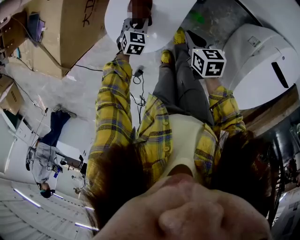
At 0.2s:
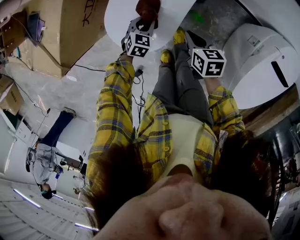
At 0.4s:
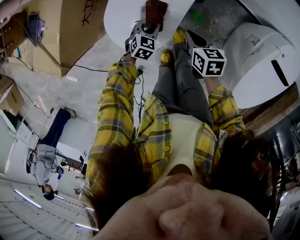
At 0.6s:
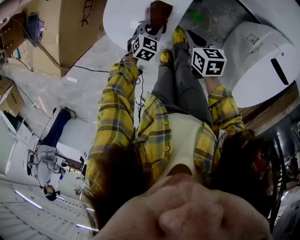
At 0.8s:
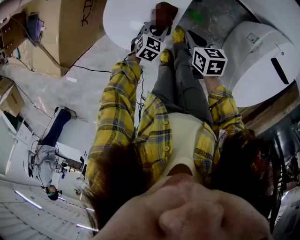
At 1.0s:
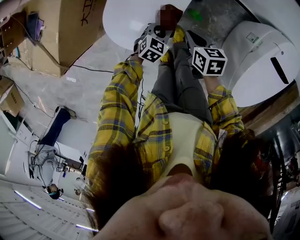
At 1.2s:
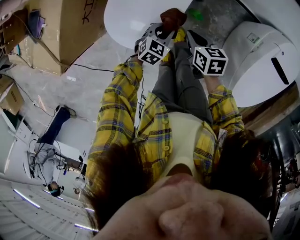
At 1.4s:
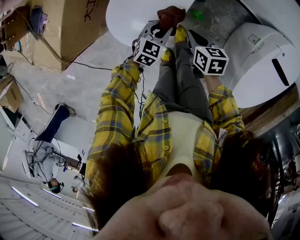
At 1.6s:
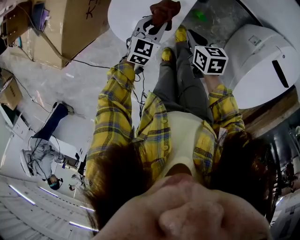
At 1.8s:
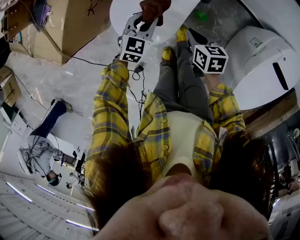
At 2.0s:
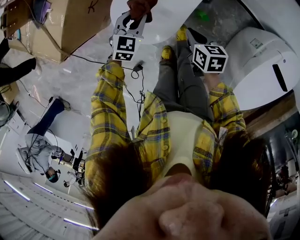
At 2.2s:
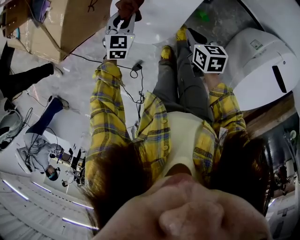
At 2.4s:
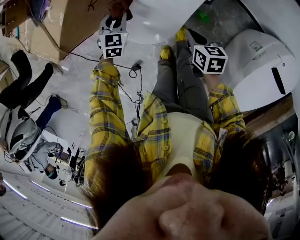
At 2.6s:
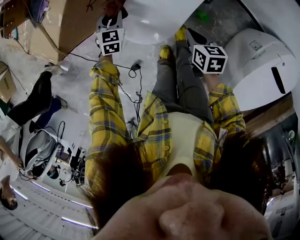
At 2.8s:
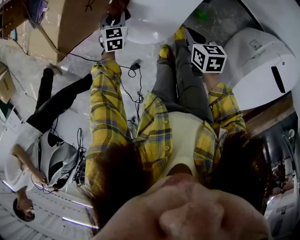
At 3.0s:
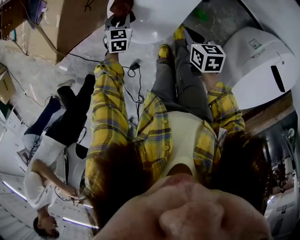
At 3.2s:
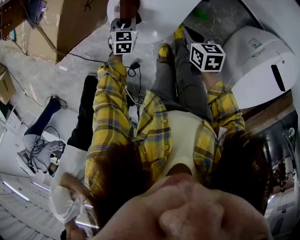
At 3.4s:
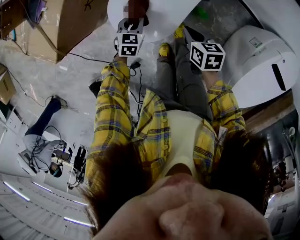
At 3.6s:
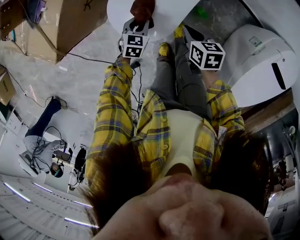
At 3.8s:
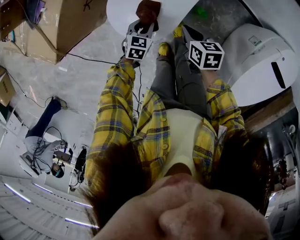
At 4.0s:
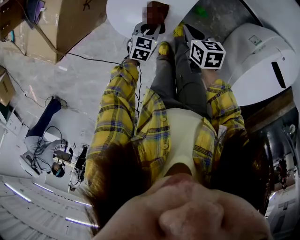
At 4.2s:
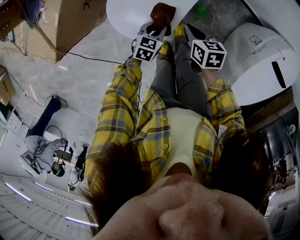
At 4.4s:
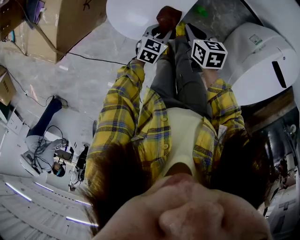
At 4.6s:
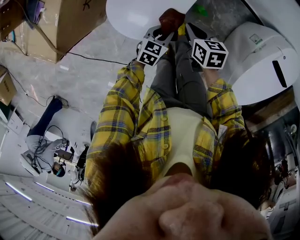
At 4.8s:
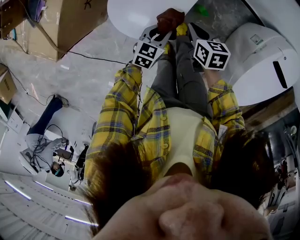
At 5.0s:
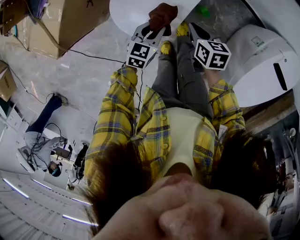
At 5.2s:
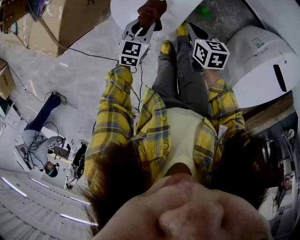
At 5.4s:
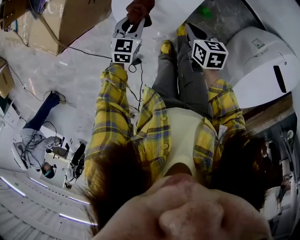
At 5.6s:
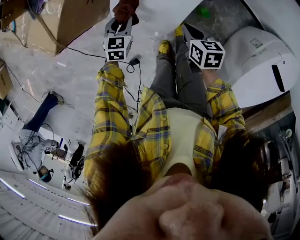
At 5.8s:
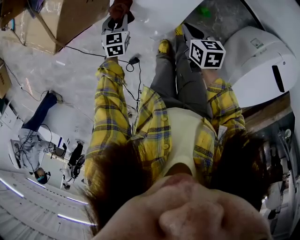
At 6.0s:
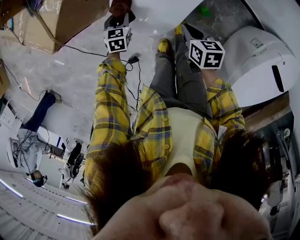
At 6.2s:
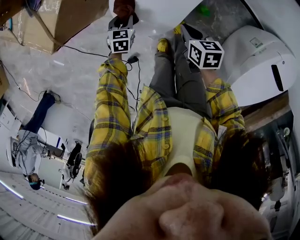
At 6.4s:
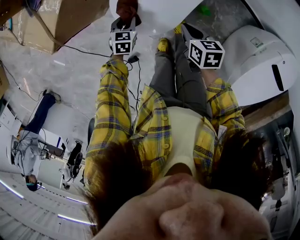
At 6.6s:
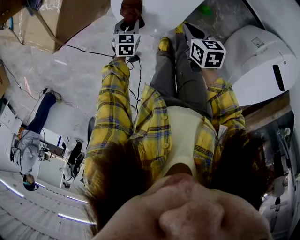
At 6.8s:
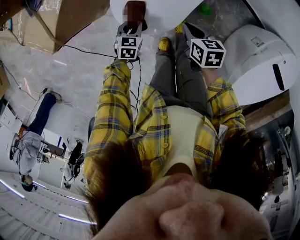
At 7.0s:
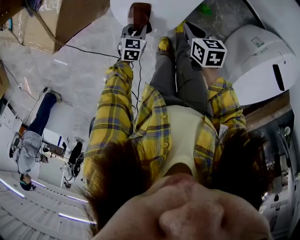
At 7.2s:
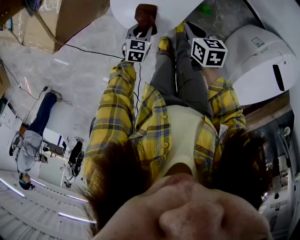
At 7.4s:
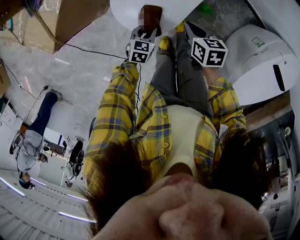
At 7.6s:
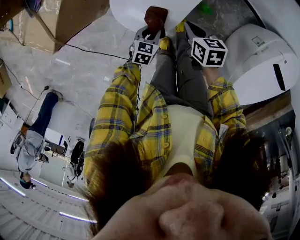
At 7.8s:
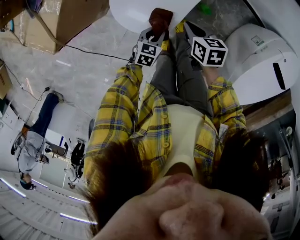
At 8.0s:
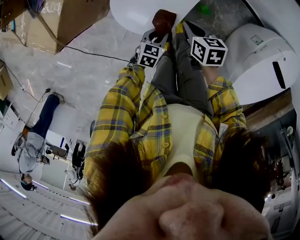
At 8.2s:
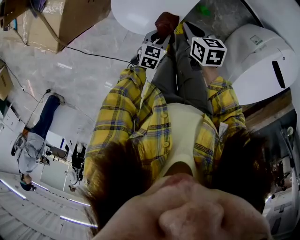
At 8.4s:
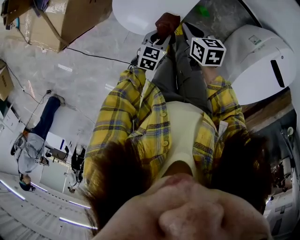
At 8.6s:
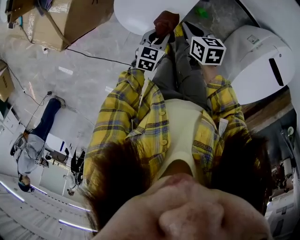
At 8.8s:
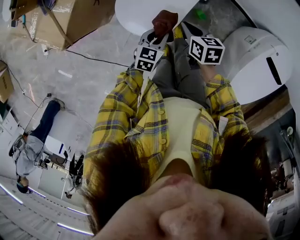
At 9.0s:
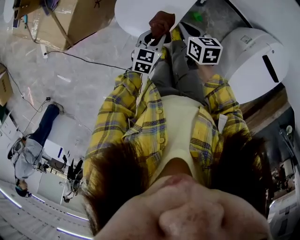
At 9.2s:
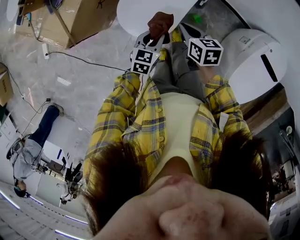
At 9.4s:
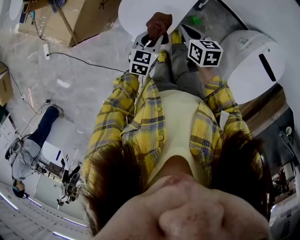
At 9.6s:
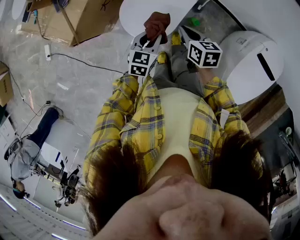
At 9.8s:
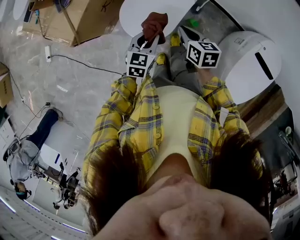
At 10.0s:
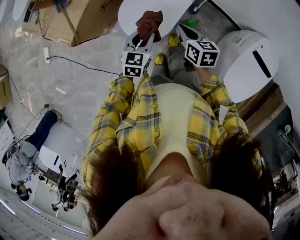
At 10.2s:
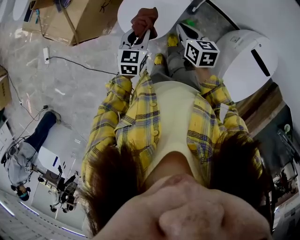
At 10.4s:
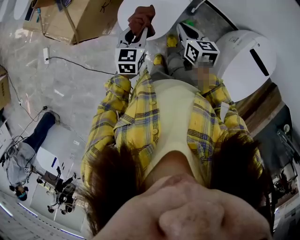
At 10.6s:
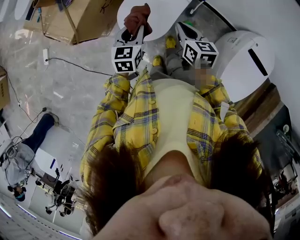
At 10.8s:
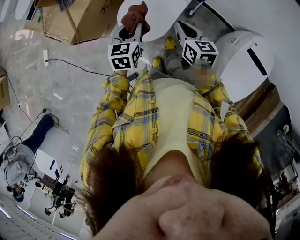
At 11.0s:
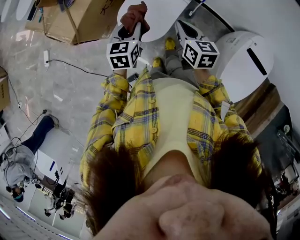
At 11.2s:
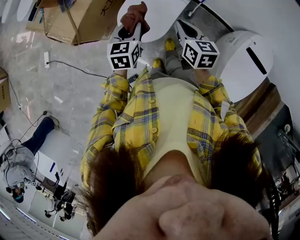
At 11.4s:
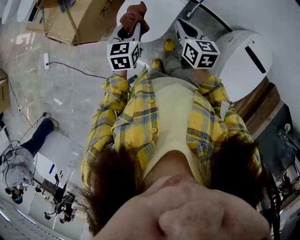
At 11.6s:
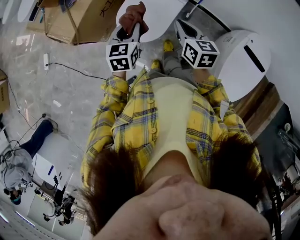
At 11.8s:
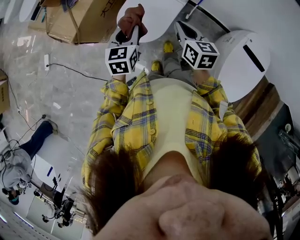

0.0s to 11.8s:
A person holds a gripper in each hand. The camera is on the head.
0.0s to 1.4s: The left gripper is displaced to the right, upward and backward by roughly 15 cm.
1.4s to 3.0s: The left gripper shifts by some 20 cm, and swivels roughly 30 degrees.
3.0s to 4.4s: The left gripper ends up roughly 20 cm from where it was, and turns by approximately 30 degrees.
4.4s to 6.0s: The left gripper shifts by roughly 20 cm, and swivels approximately 30 degrees.
6.0s to 7.4s: The left gripper heads backward and to the right, covering roughly 15 cm.
7.4s to 8.8s: The right gripper shifts roughly 5 cm upward; the left gripper goes approximately 15 cm upward and to the right.
8.8s to 10.4s: Both grippers travel together upward, about 15 cm.
10.4s to 11.8s: Both grippers travel together upward, approximately 5 cm.

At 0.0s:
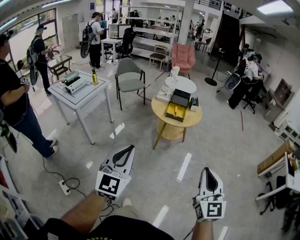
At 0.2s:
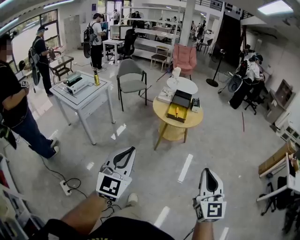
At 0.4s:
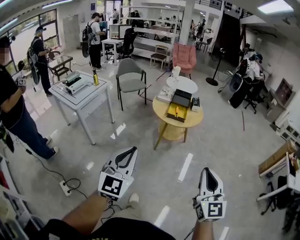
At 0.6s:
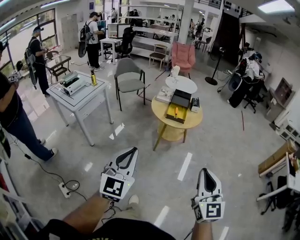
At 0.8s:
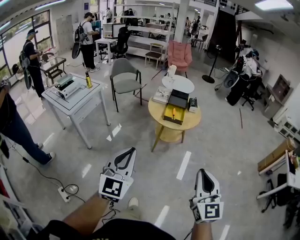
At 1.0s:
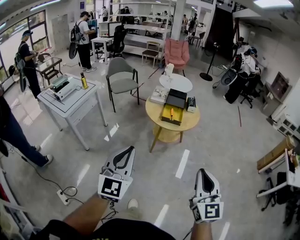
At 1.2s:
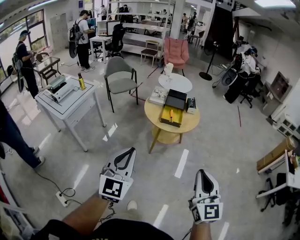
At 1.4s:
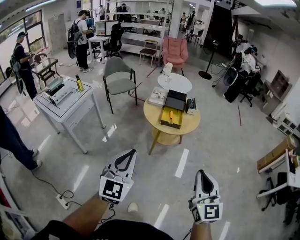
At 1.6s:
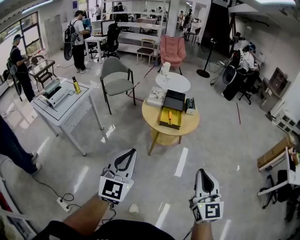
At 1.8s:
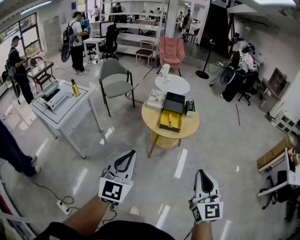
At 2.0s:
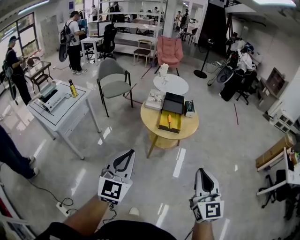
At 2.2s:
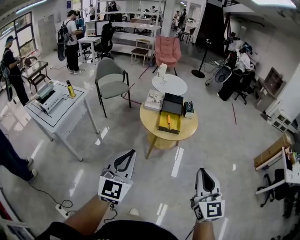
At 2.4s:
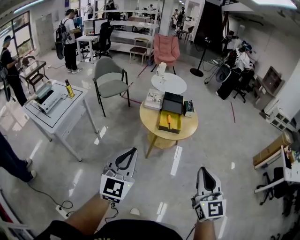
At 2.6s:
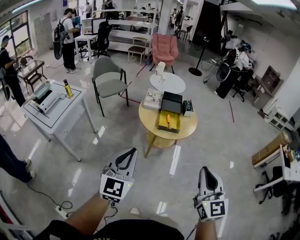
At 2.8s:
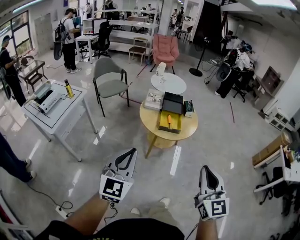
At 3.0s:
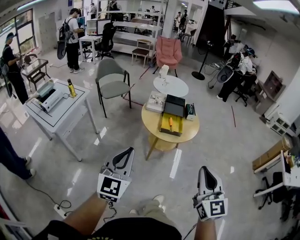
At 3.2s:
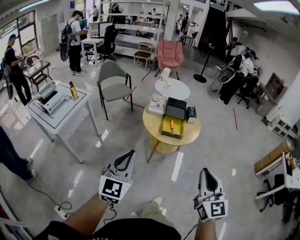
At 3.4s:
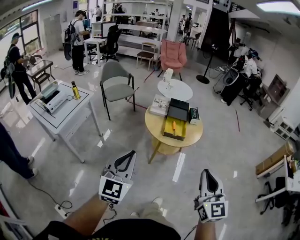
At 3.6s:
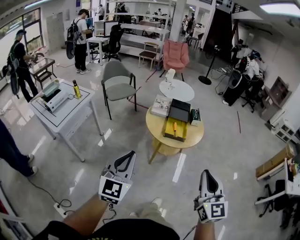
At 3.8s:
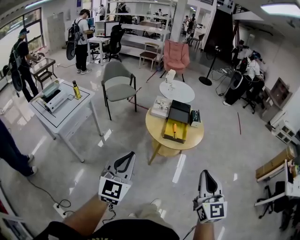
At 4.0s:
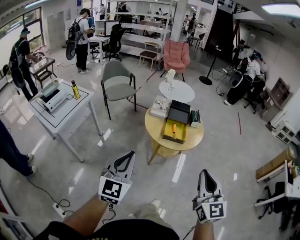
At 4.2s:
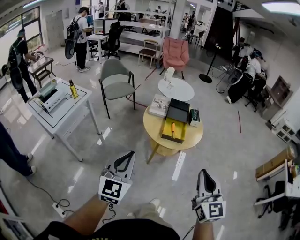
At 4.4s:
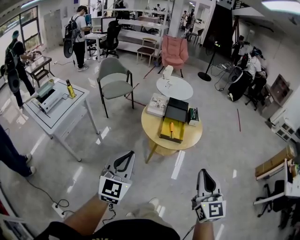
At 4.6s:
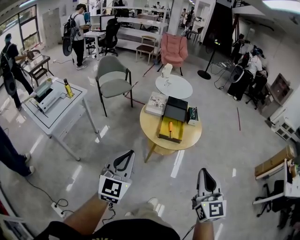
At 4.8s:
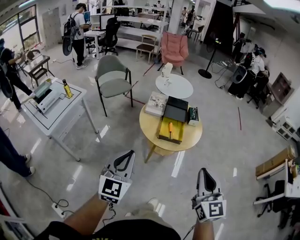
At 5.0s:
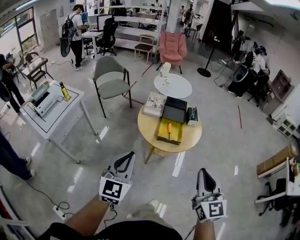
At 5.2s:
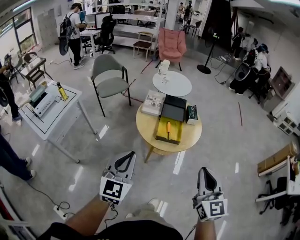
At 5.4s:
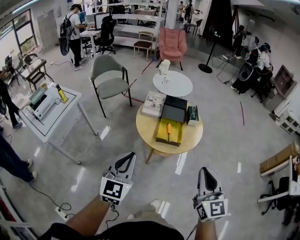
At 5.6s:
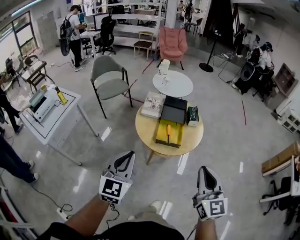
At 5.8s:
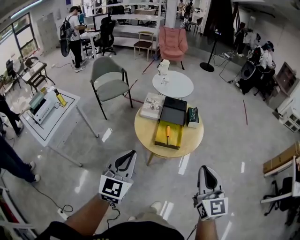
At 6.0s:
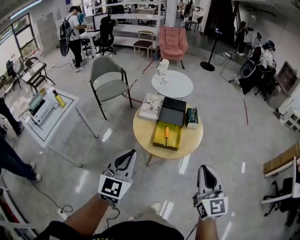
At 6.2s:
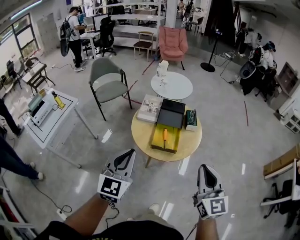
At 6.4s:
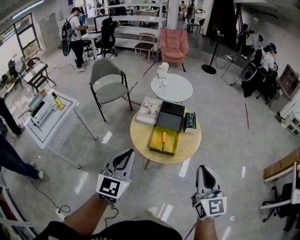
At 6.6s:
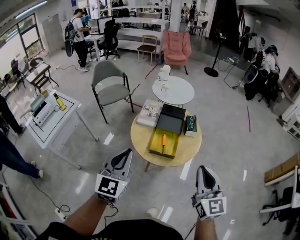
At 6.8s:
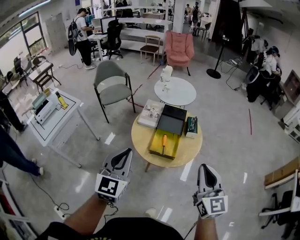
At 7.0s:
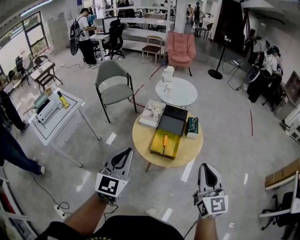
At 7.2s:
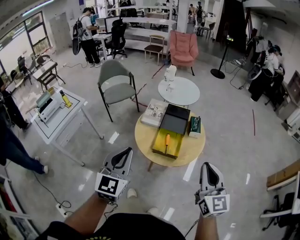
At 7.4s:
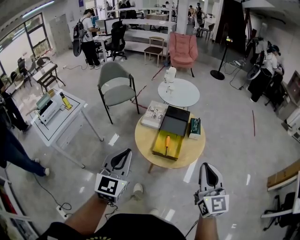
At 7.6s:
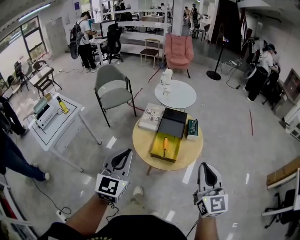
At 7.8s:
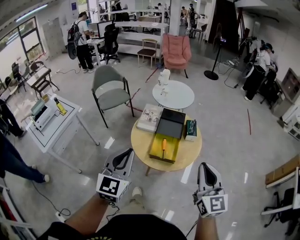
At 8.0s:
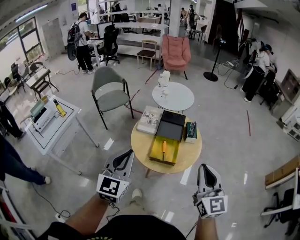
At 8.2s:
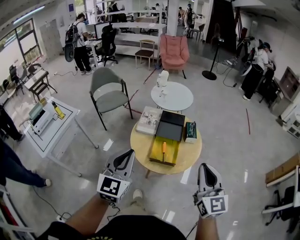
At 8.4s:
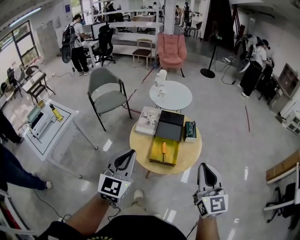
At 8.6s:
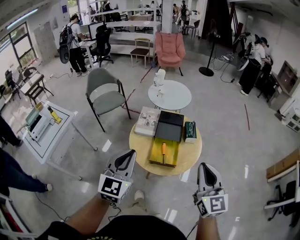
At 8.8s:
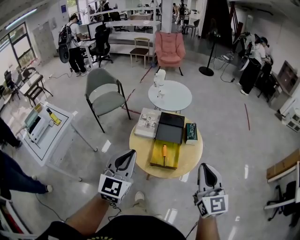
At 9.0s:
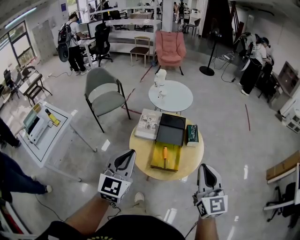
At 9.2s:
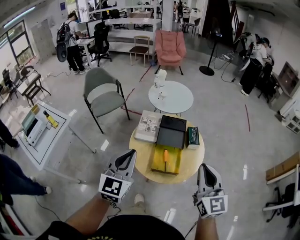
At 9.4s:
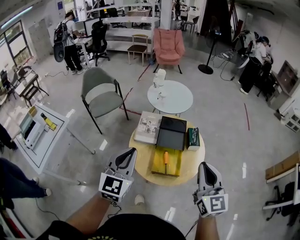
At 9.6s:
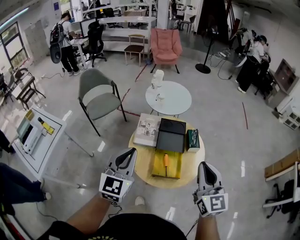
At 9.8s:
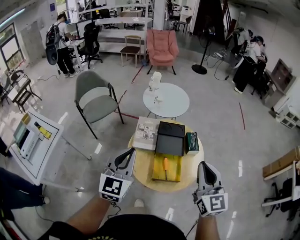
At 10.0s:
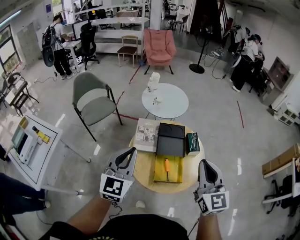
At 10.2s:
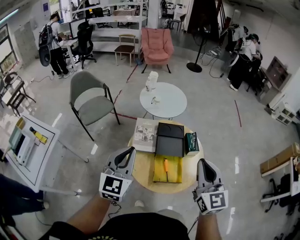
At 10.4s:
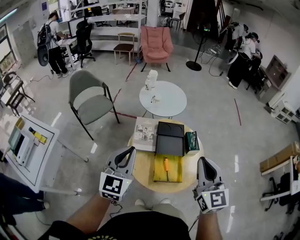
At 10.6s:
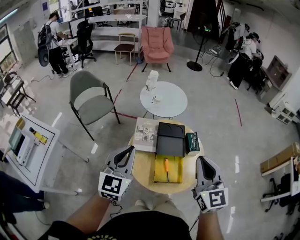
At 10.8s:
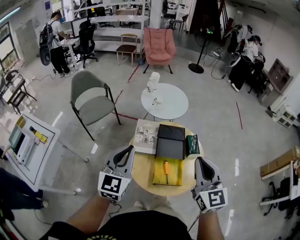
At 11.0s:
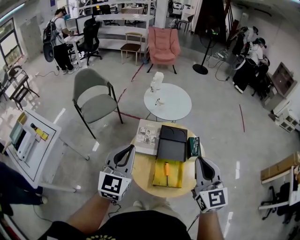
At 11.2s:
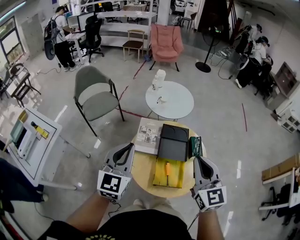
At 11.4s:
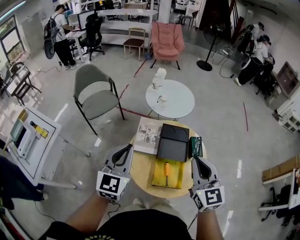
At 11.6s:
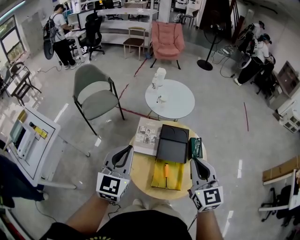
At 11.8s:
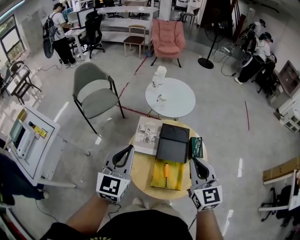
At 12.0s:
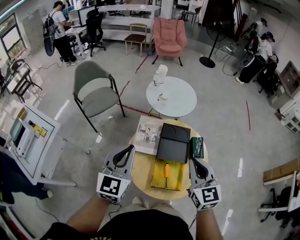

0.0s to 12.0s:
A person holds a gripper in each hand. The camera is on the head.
0.0s to 1.6s: The two grippers go roughly 20 cm forward.
1.6s to 3.0s: The two grippers go roughly 10 cm to the left and forward.
3.0s to 4.4s: The two grippers go roughly 10 cm forward.
4.4s to 6.0s: Both grippers travel together forward and to the right, about 20 cm.
6.0s to 7.6s: The right gripper is displaced forward by some 5 cm. Meanwhile the left gripper ends up approximately 5 cm from where it was.
7.6s to 9.0s: Both grippers move forward, some 10 cm.
9.0s to 10.4s: Both grippers move forward and to the left, about 15 cm.
10.4s to 12.0s: The left gripper goes roughly 5 cm forward. Meanwhile the right gripper goes roughly 10 cm forward and downward.
